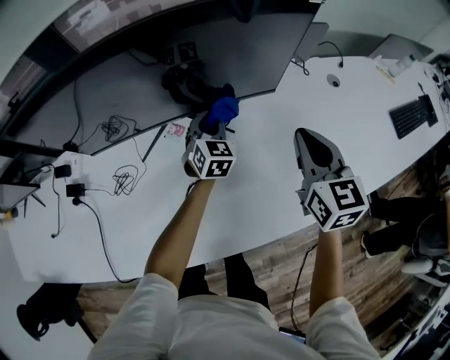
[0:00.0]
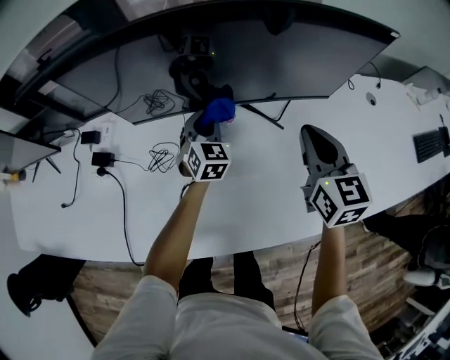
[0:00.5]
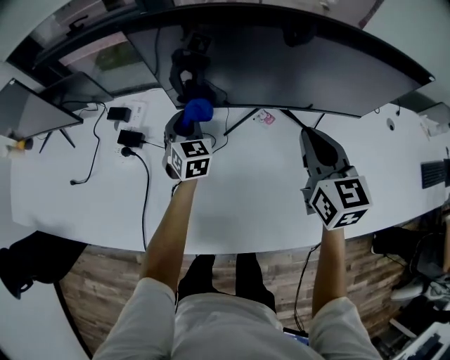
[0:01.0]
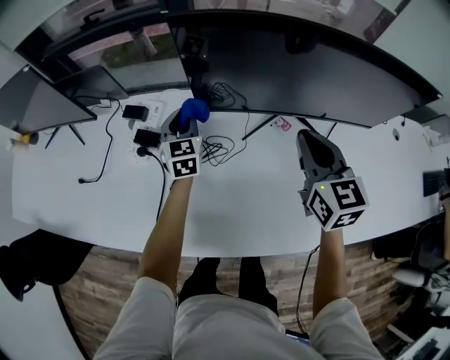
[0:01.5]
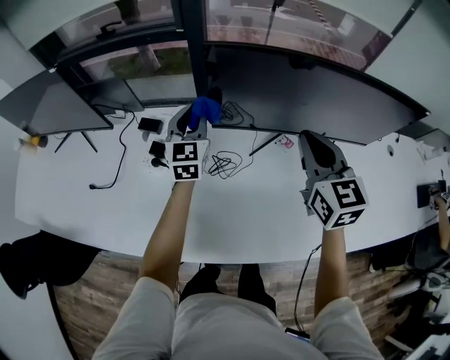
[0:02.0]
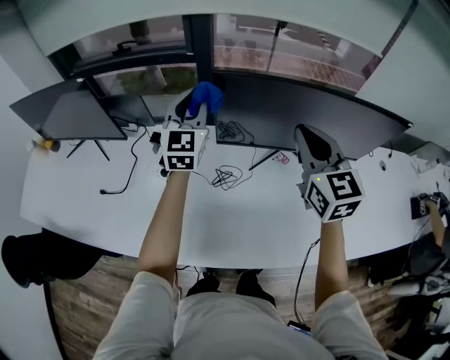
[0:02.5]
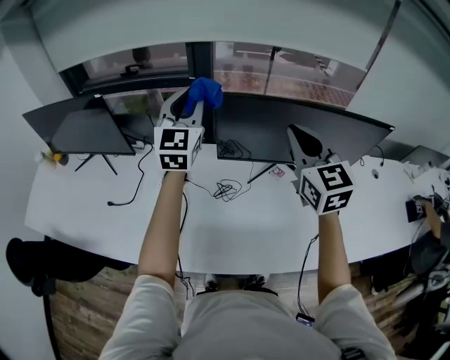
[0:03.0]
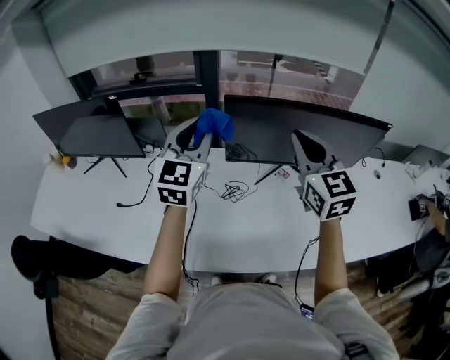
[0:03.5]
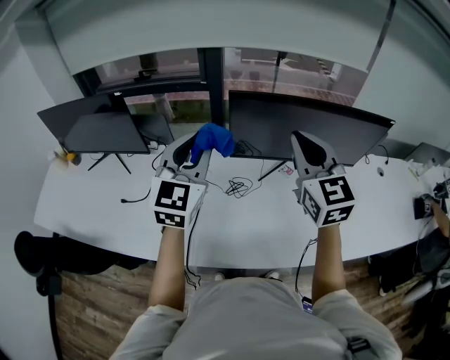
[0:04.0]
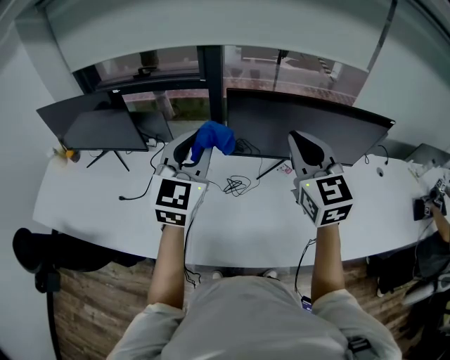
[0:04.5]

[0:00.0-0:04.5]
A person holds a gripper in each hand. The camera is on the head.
0:00.0 to 0:02.0: Both grippers move to the left, approximately 40 cm. The right gripper rotates roughly 20 degrees. The left gripper swivels roughly 30 degrees.
0:02.0 to 0:04.5: The left gripper heads upward and backward, covering some 30 cm; the right gripper shifts approximately 20 cm upward, backward and to the left.

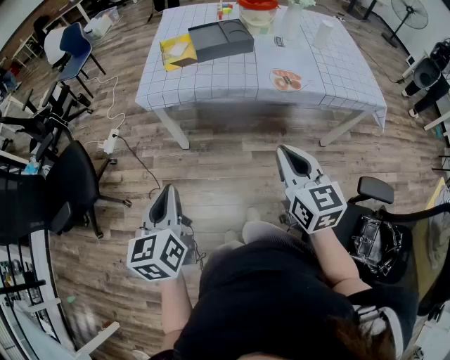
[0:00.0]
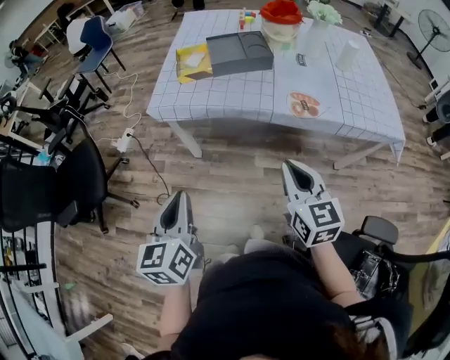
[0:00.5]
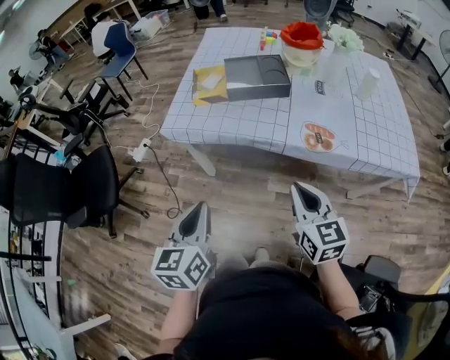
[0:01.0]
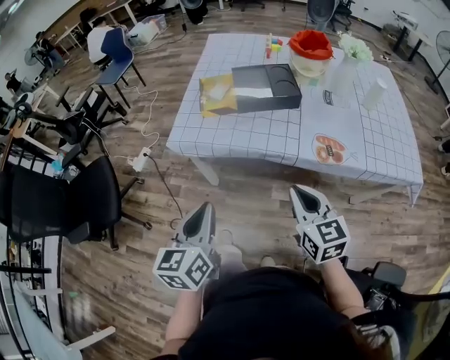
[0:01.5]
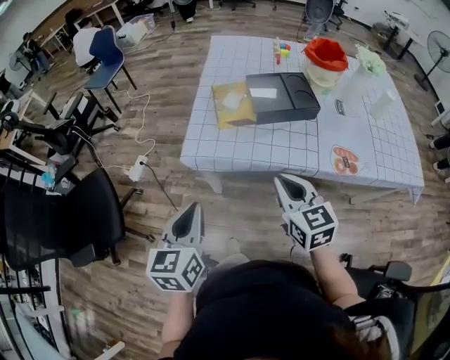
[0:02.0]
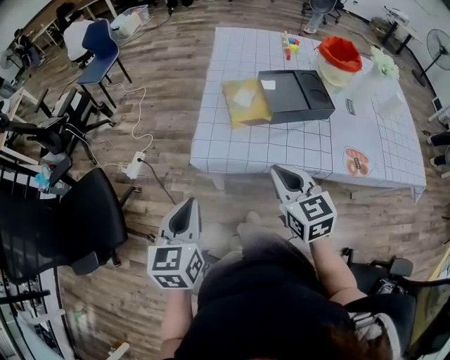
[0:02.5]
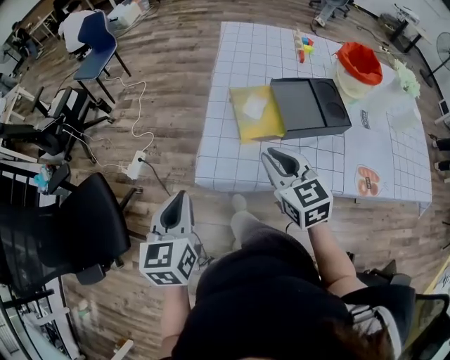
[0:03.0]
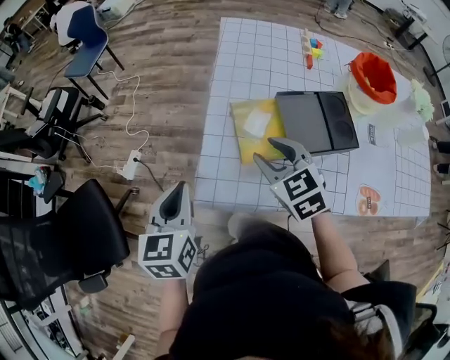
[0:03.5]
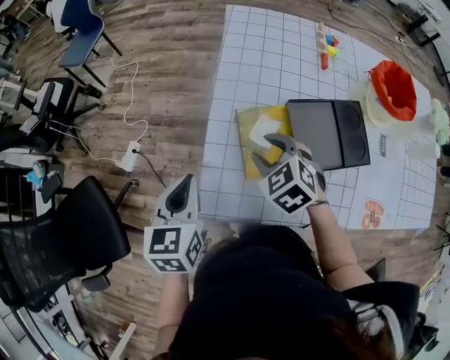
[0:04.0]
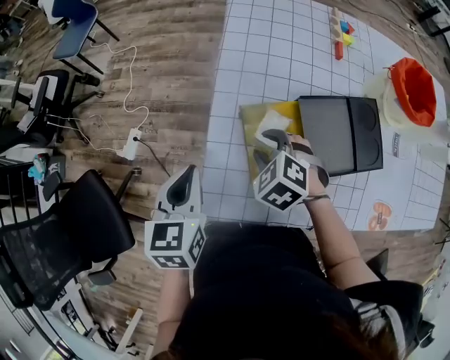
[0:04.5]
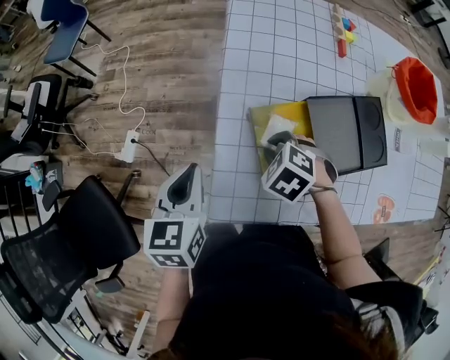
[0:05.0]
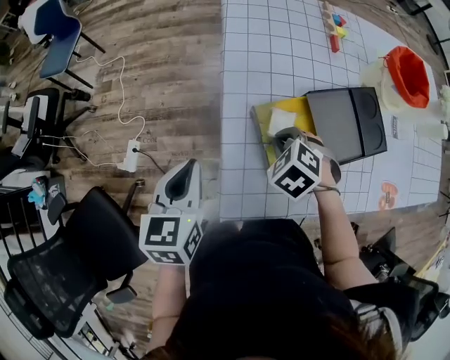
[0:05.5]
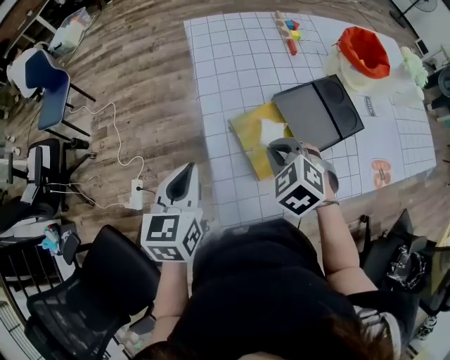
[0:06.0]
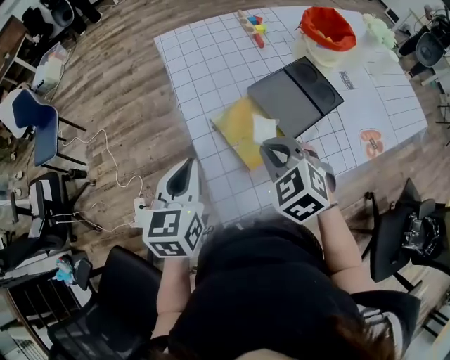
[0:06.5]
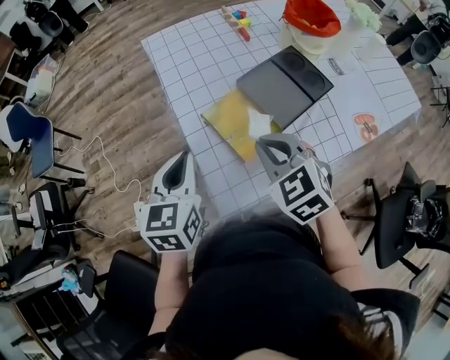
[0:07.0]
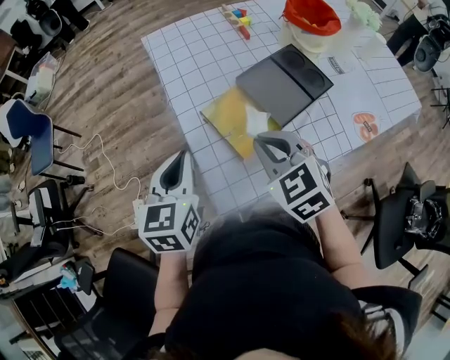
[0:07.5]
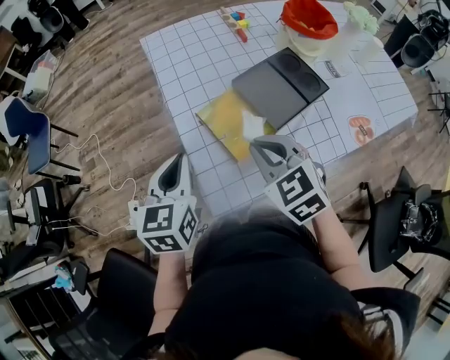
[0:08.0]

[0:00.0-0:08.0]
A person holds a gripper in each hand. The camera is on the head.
0:00.0 to 0:02.0: The right gripper shifts some 30 cm forward and to the left; the left gripper is displaced forward by approximately 25 cm.
0:02.0 to 0:04.0: The grippers both shift forward by approximately 35 cm. The right gripper tips its fingers downward by some 30 degrees, and opens its fingers.
0:04.0 to 0:06.0: The right gripper goes downward and returns, roughly 10 cm each way, and closes; the left gripper moves forward, approximately 5 cm, and rotates roughly 20 degrees.
0:06.0 to 0:08.0: The right gripper shifts some 10 cm upward and backward, and turns by approximately 30 degrees.

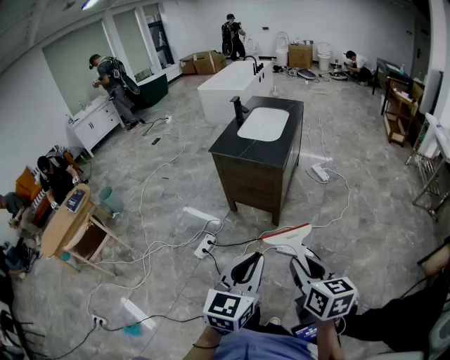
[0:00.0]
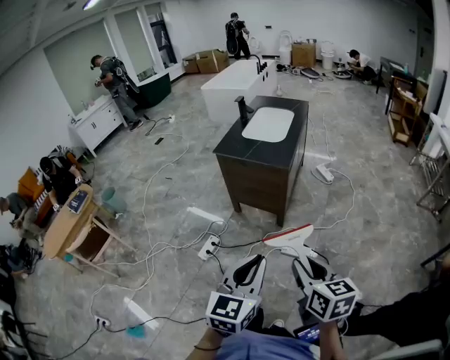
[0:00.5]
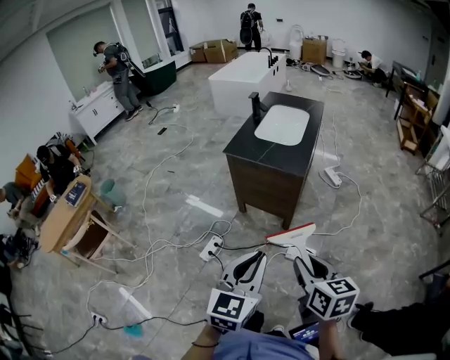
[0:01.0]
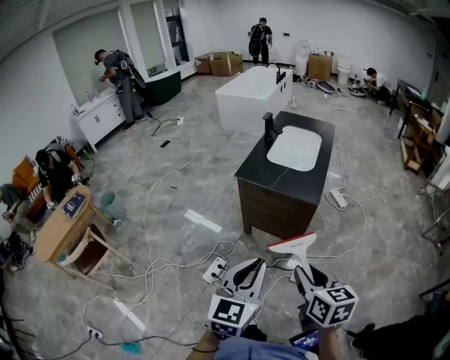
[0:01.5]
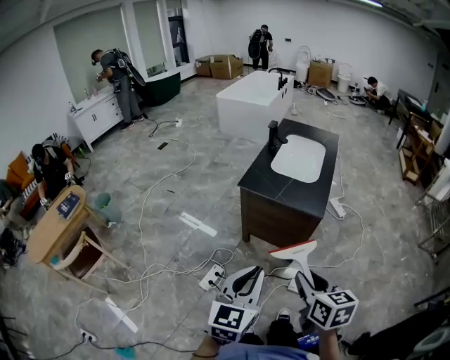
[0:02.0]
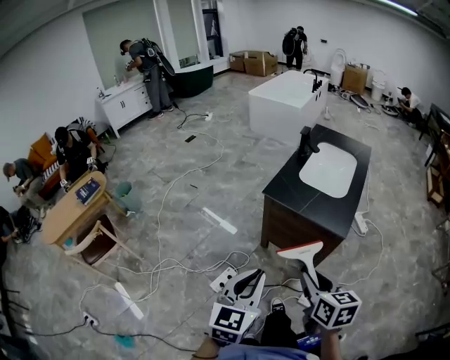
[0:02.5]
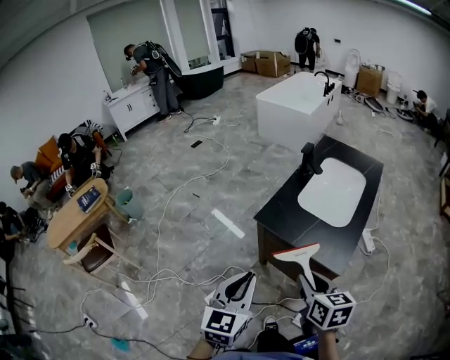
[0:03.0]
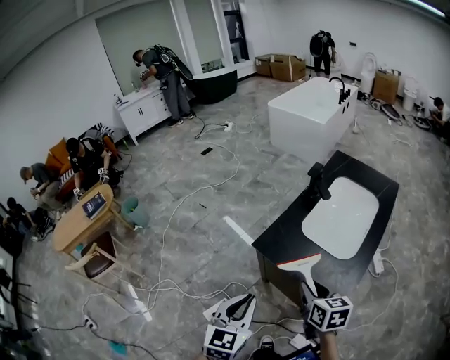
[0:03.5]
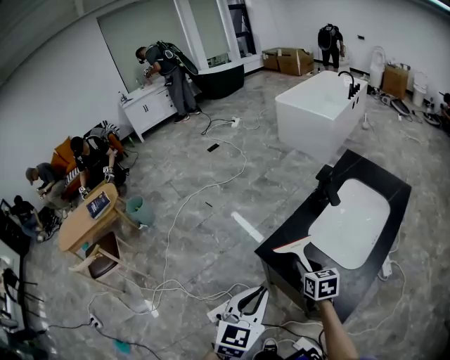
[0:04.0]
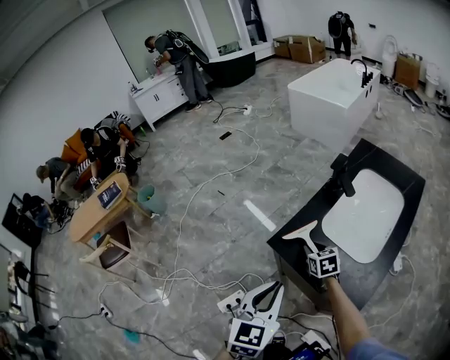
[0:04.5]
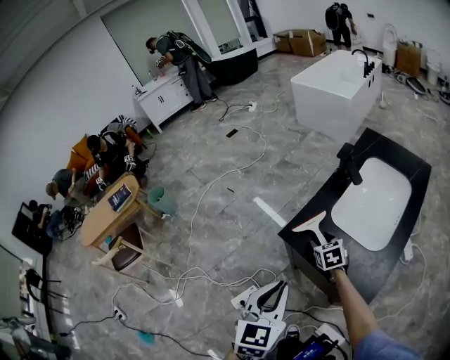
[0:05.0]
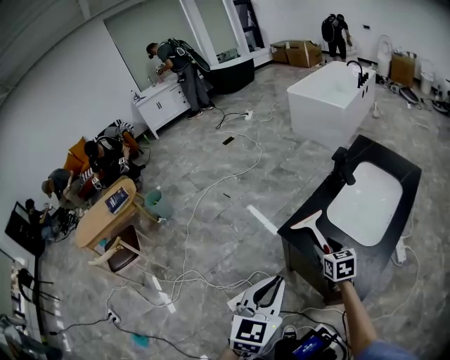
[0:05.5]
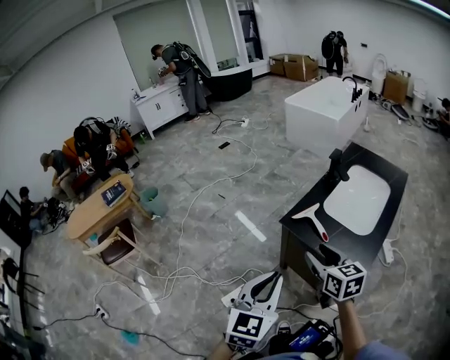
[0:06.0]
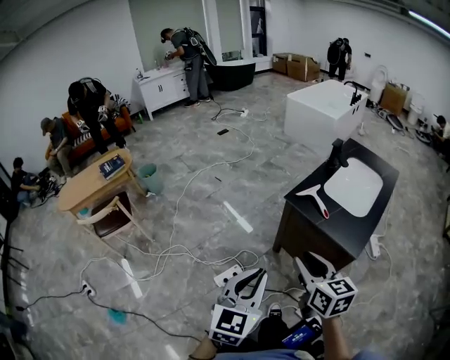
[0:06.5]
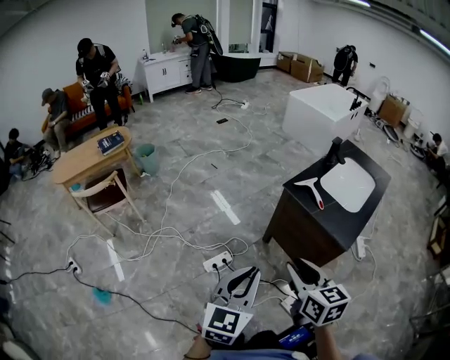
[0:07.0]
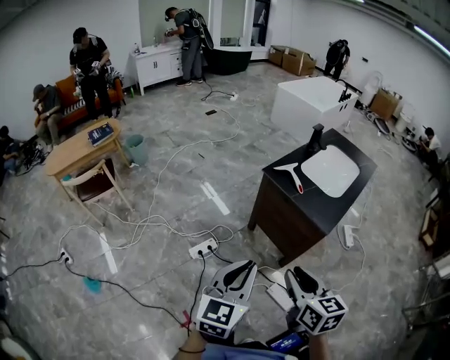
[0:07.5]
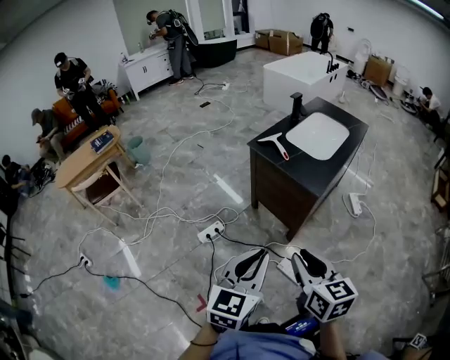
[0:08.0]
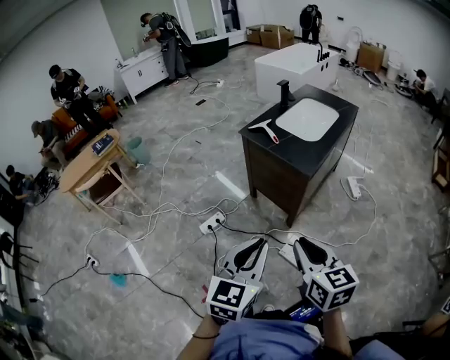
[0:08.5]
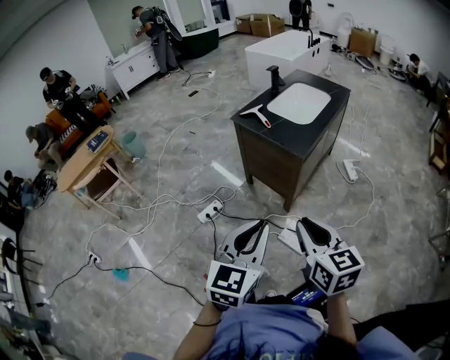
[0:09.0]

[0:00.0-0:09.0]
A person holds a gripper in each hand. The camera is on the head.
0:00.0 to 0:02.0: The two grippers go approximately 30 cm forward and to the left.
0:02.0 to 0:04.5: The left gripper heads forward, covering about 35 cm, and swivels roughly 20 degrees. Meanwhile the right gripper moves forward and downward, approximately 60 cm, and changes its angle by roughly 30 degrees.
0:04.5 to 0:07.0: The left gripper moves backward and to the left, about 40 cm. The right gripper heads backward, upward and to the left, covering about 60 cm, and opens, then closes once more.
0:07.0 to 0:09.0: Both grippers travel together to the right and backward, approximately 35 cm.

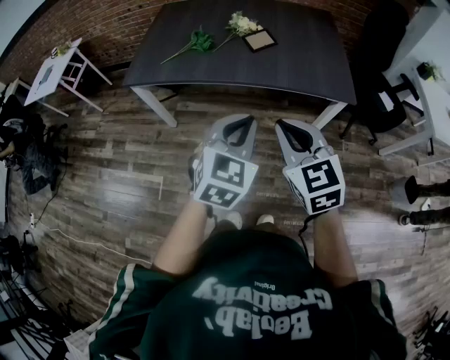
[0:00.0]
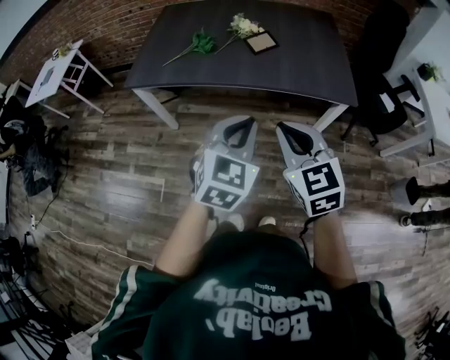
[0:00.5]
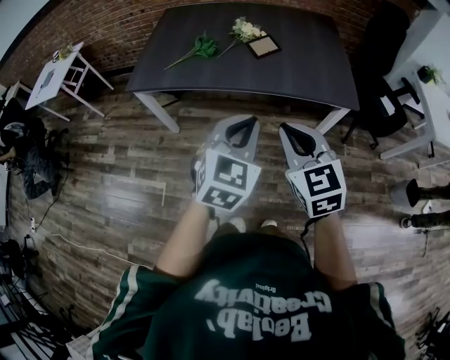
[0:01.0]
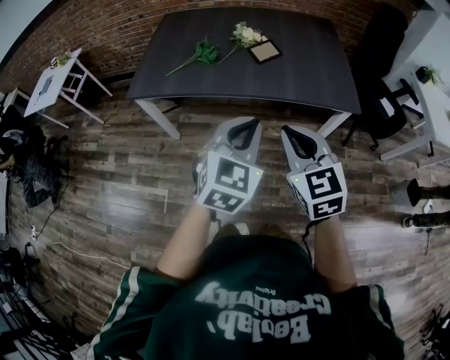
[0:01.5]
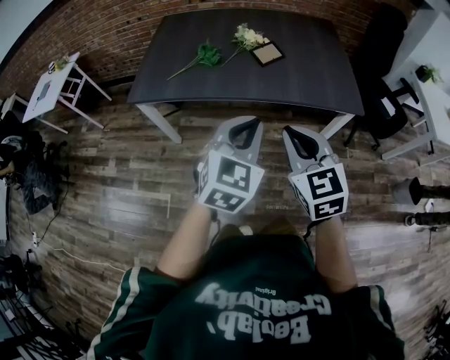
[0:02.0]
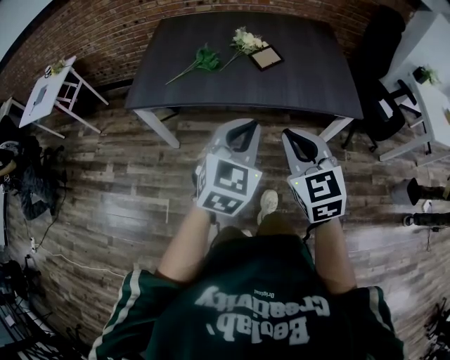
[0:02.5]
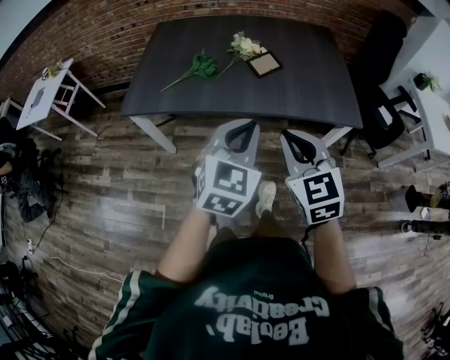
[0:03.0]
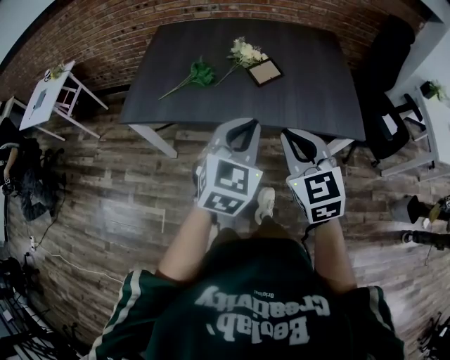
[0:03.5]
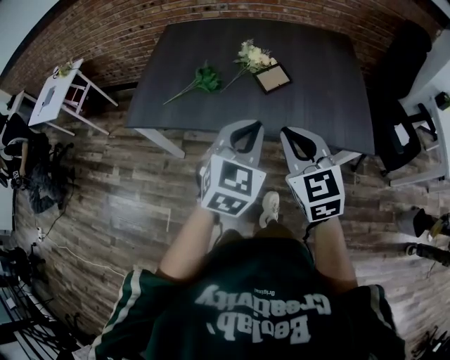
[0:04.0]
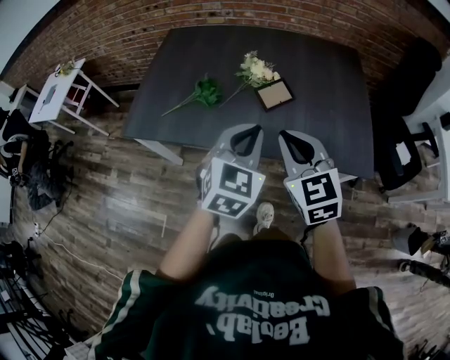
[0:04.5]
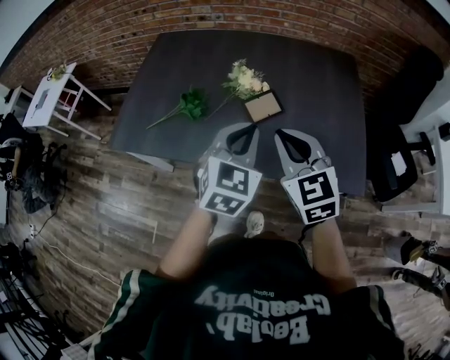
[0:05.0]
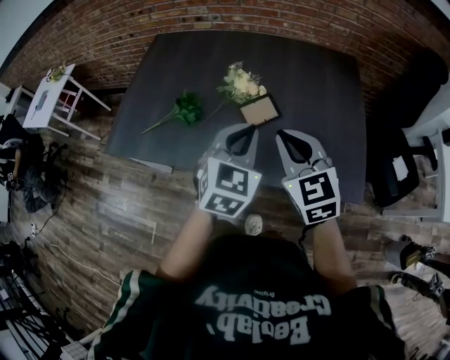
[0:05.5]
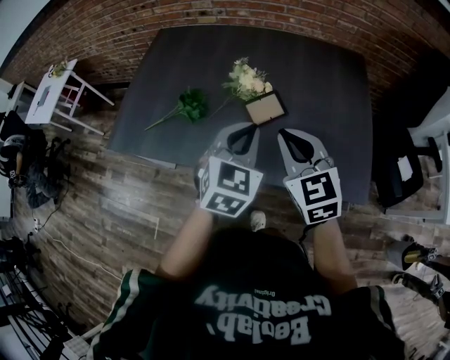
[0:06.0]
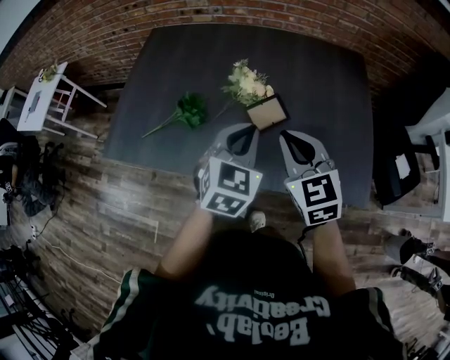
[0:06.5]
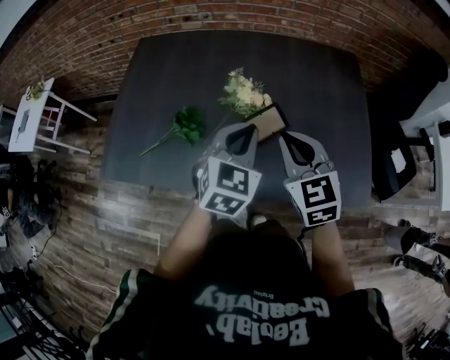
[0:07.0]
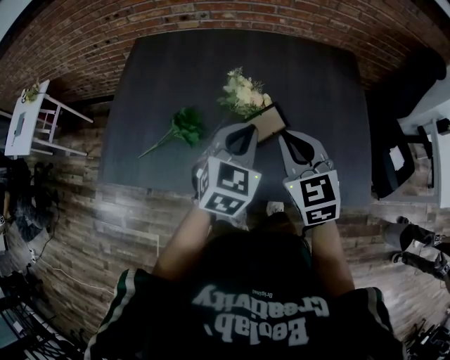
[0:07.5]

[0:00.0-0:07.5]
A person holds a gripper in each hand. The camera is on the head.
0:00.0 to 0:02.0: Both grippers move to the left, approximately 5 cm.
0:02.0 to 0:04.0: The two grippers go some 20 cm forward.
0:04.0 to 0:05.5: The left gripper is displaced forward by approximately 20 cm, while the right gripper is displaced forward and to the right by about 20 cm.
0:05.5 to 0:07.5: The grippers both shift forward and to the left by roughly 10 cm.
